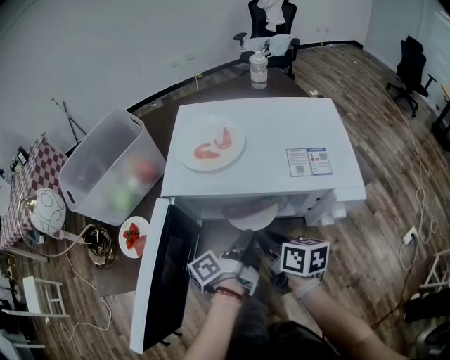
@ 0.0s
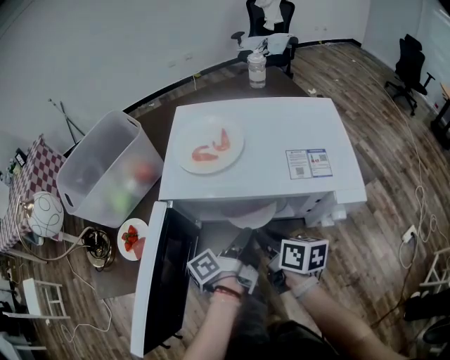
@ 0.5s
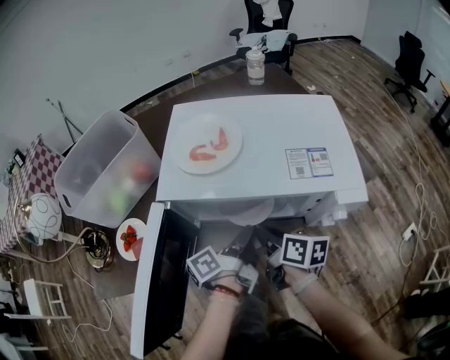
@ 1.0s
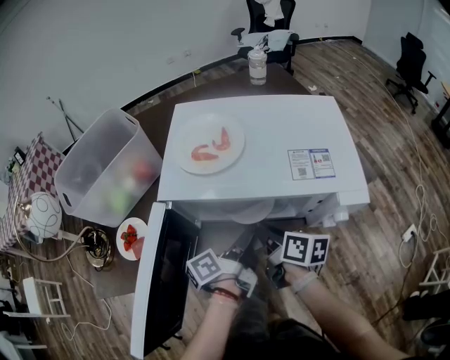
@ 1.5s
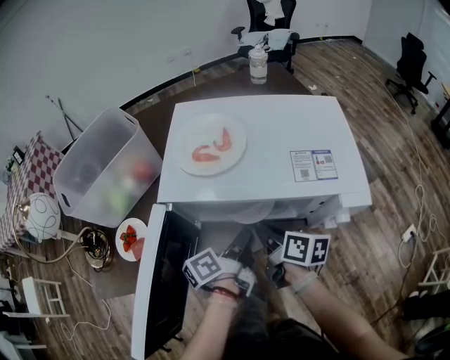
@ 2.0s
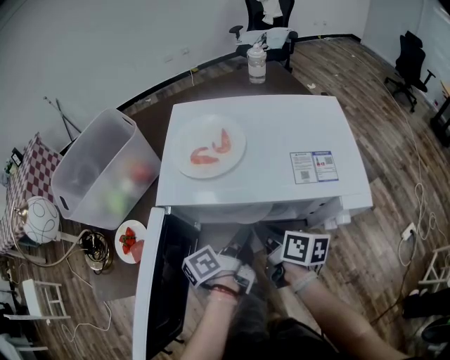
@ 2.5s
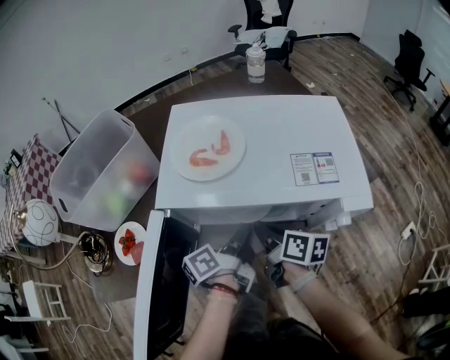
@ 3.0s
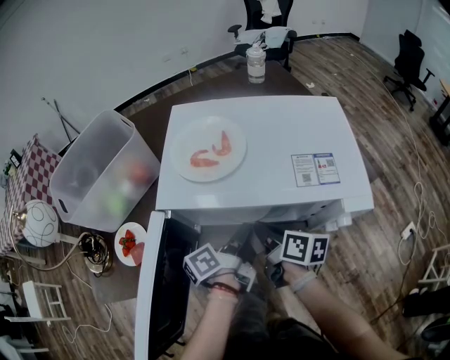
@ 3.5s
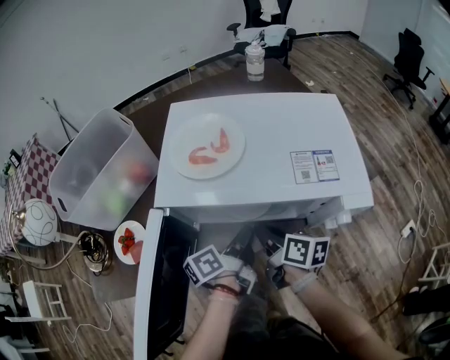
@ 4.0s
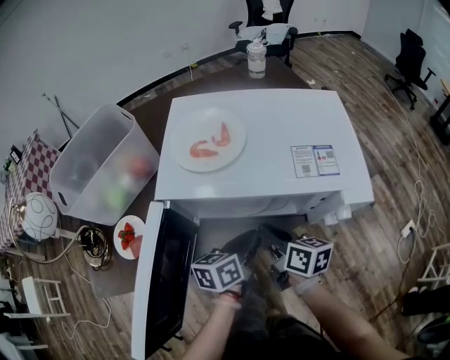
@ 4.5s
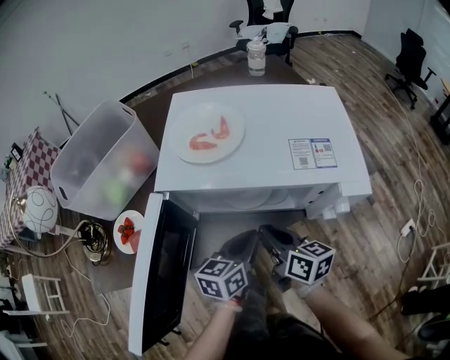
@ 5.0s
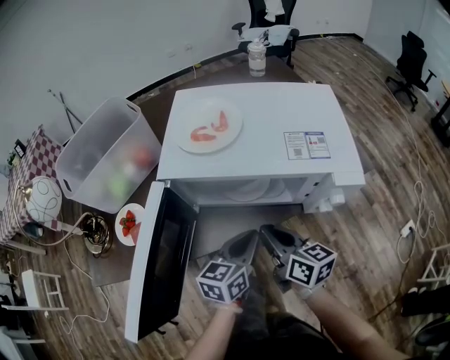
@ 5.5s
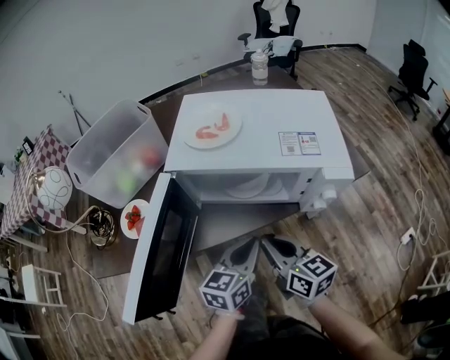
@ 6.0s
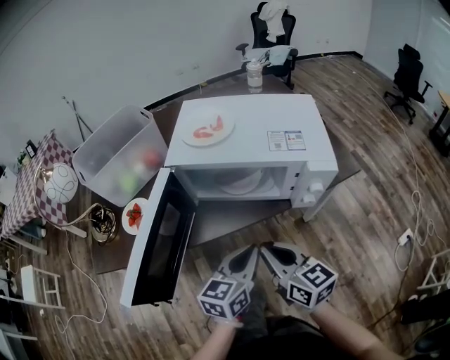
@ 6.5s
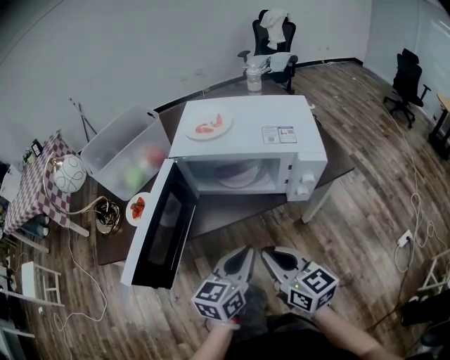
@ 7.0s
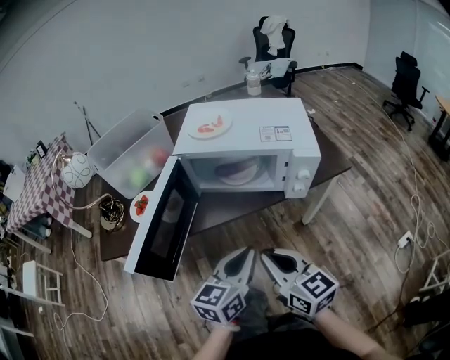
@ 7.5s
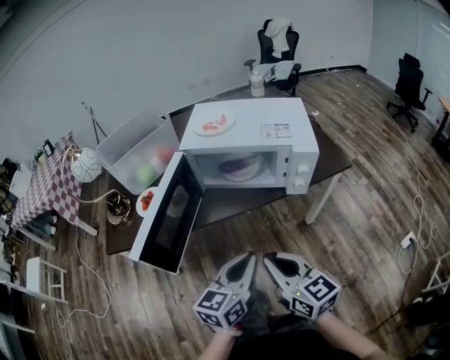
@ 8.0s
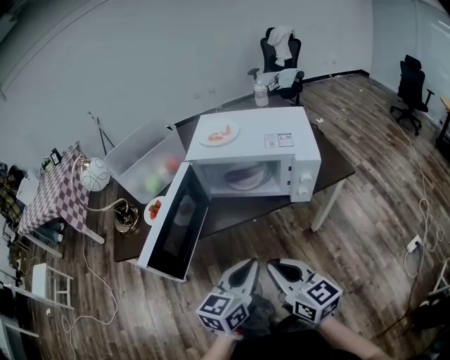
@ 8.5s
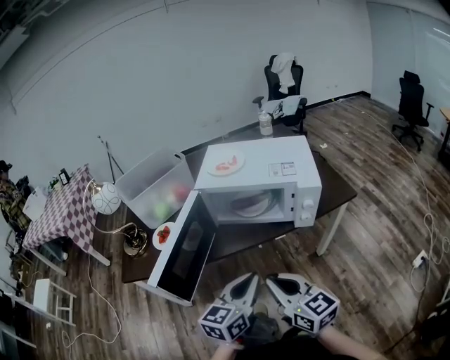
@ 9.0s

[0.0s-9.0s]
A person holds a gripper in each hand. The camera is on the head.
4.5s to 7.0s: The right gripper shifts by roughly 25 cm, and changes its angle by some 30 degrees.
7.0s to 9.0s: The right gripper ends up about 10 cm from where it was.

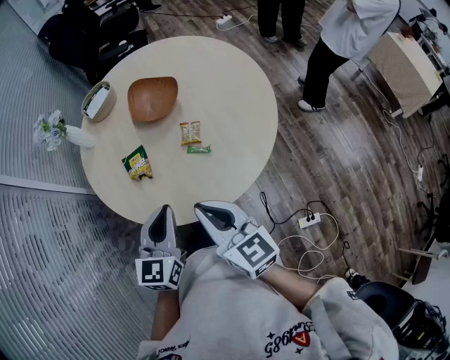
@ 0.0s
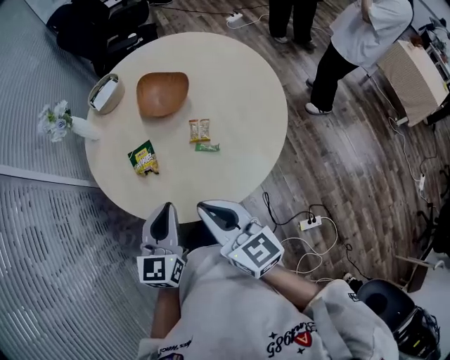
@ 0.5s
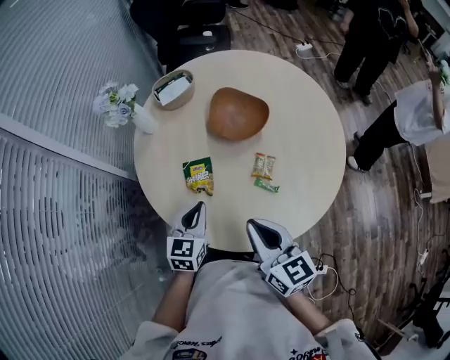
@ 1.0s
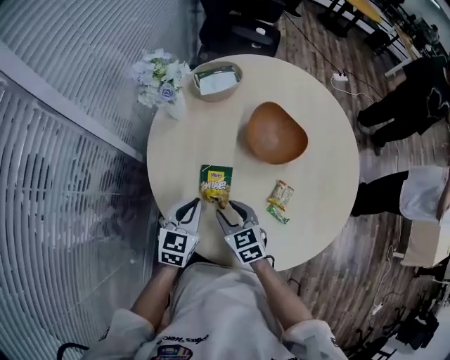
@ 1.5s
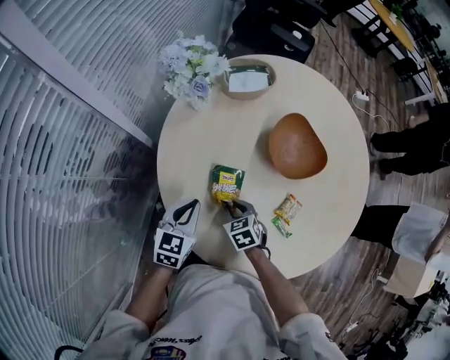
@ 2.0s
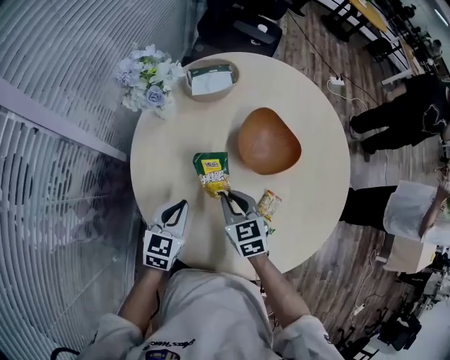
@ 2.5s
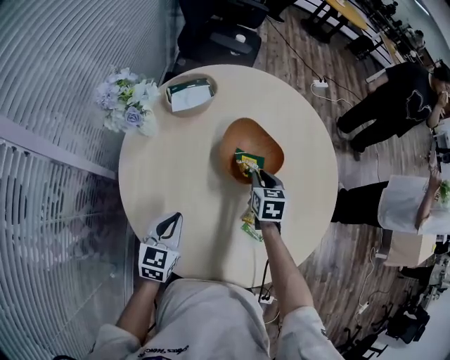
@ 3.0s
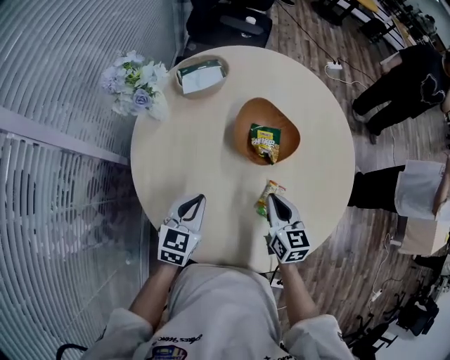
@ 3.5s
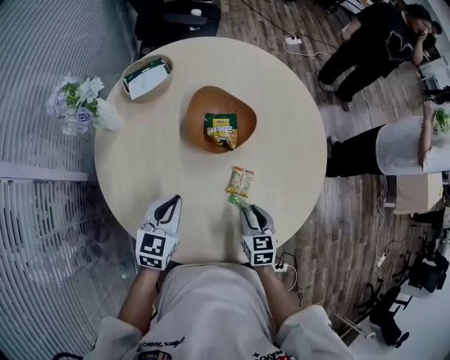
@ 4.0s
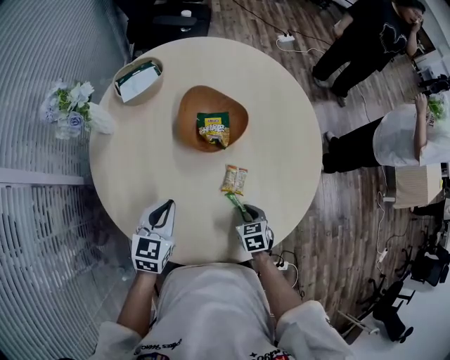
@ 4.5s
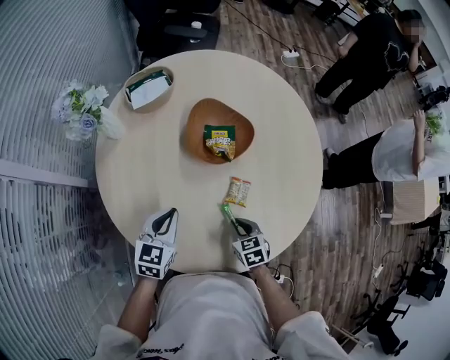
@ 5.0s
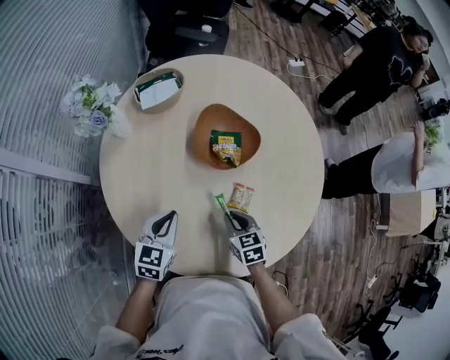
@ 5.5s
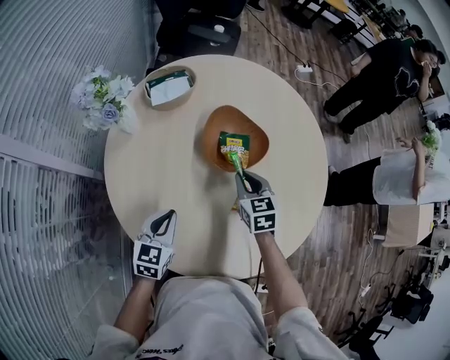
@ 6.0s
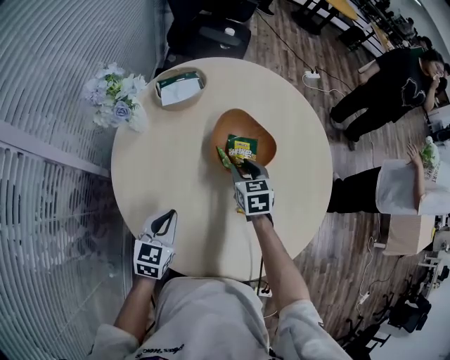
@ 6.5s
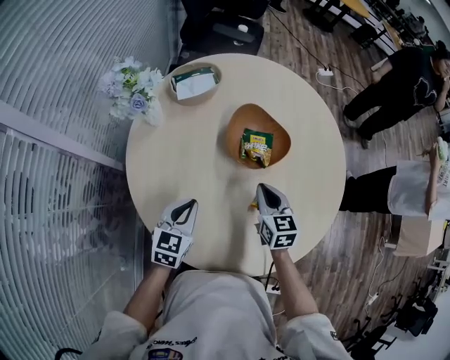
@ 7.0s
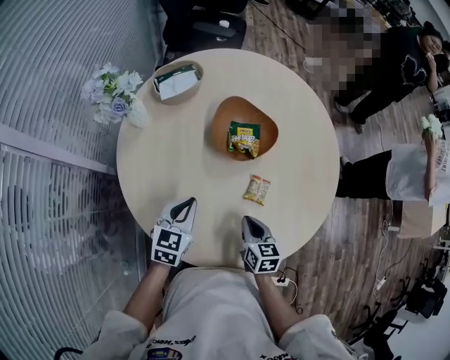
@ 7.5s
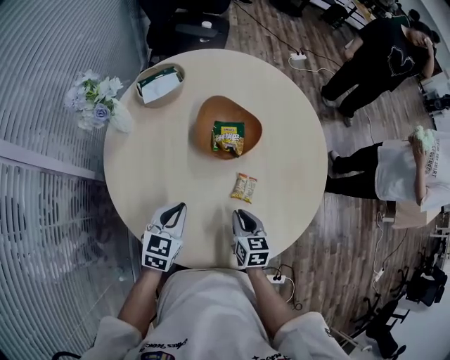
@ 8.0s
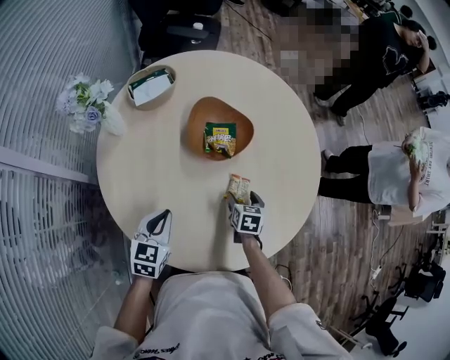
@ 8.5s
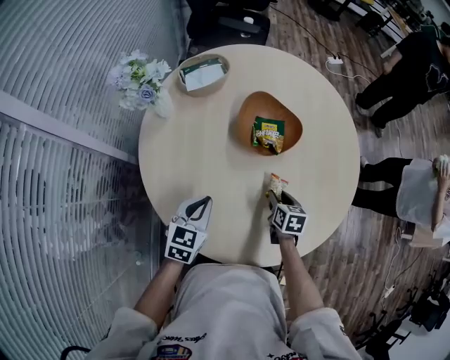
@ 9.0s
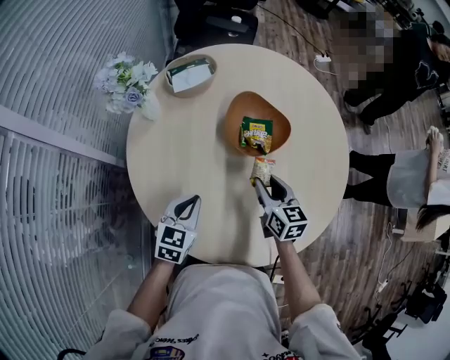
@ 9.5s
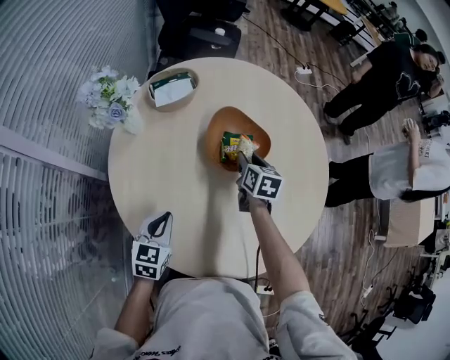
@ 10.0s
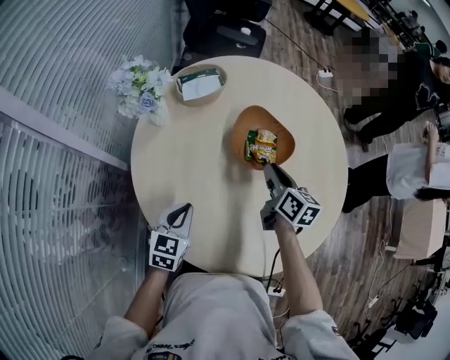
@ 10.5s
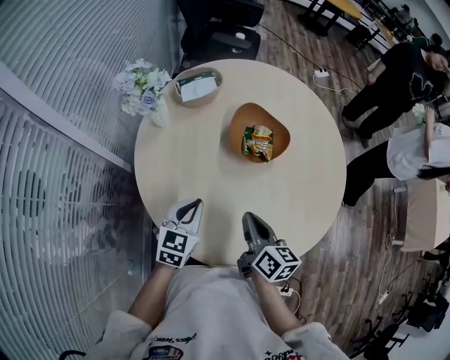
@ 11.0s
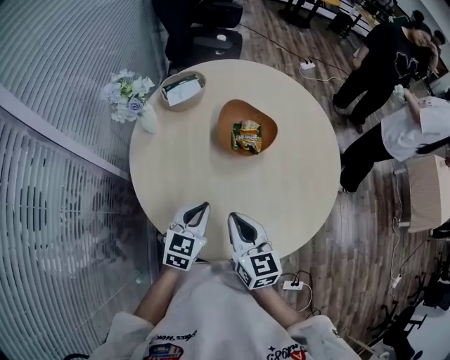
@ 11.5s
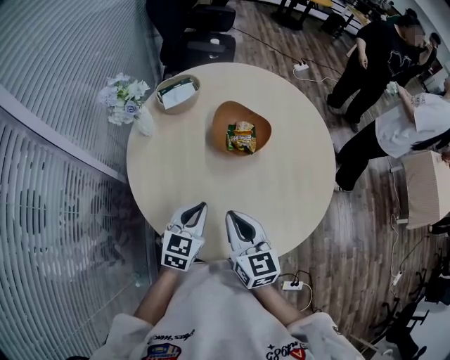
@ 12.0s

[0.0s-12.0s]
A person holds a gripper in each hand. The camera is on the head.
0.0s to 2.0s: The left gripper changes place by approximately 30 cm, and changes its angle by approximately 30 degrees. The right gripper goes roughly 30 cm downward, tilts its fingers some 50 degrees downward, and opens.
2.0s to 4.0s: The right gripper shifts by approximately 25 cm, turns by about 40 degrees, and closes and opens again. Meanwhile the left gripper shifts by some 15 cm.
4.0s to 6.0s: The right gripper goes approximately 20 cm forward and to the left.
6.0s to 8.0s: The right gripper moves backward, some 15 cm, rotates some 20 degrees, and opens, then closes again.
8.0s to 10.0s: The left gripper is displaced to the left by about 5 cm; the right gripper travels forward by roughly 25 cm, and opens its fingers.
10.0s to 12.0s: The left gripper travels upward and to the right by approximately 10 cm, while the right gripper travels backward and upward by approximately 30 cm, swivels approximately 30 degrees, and closes its fingers.

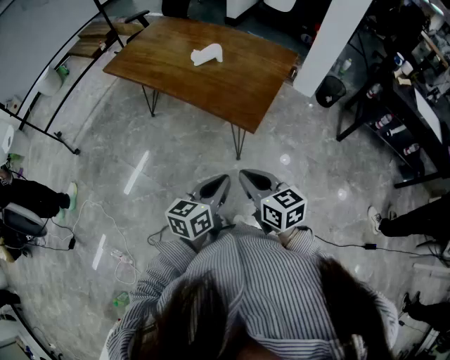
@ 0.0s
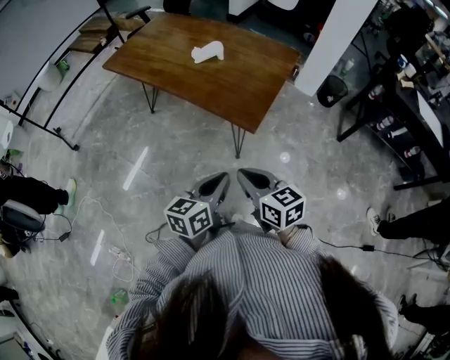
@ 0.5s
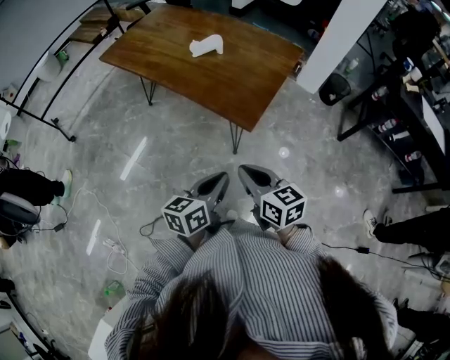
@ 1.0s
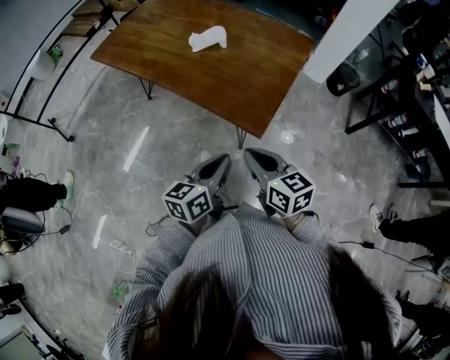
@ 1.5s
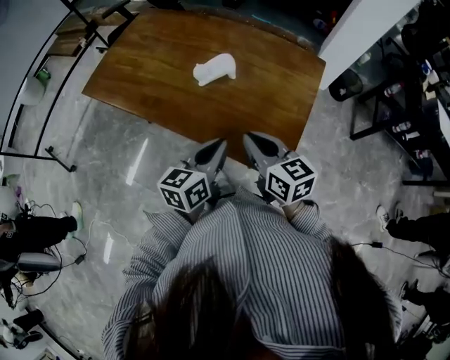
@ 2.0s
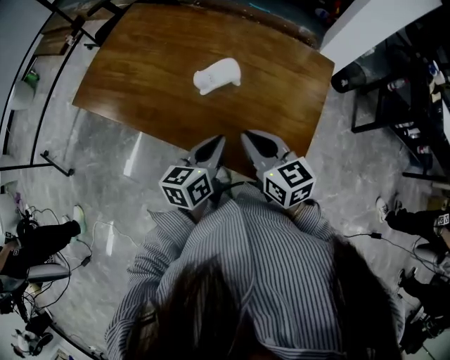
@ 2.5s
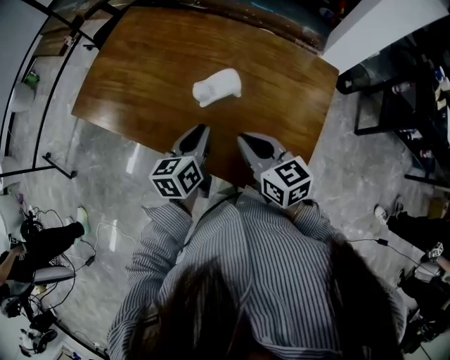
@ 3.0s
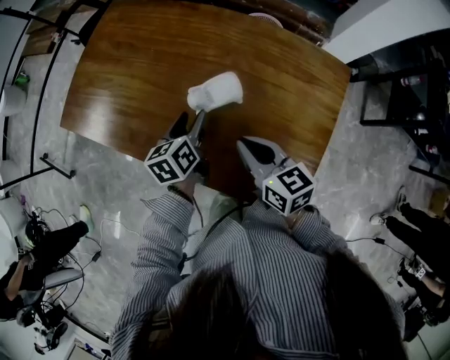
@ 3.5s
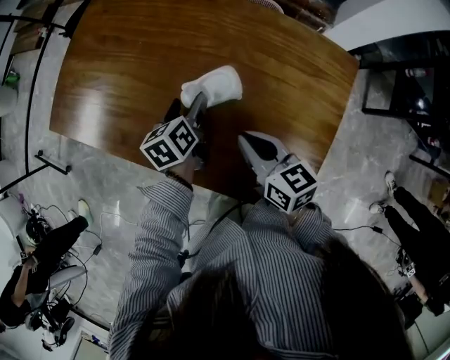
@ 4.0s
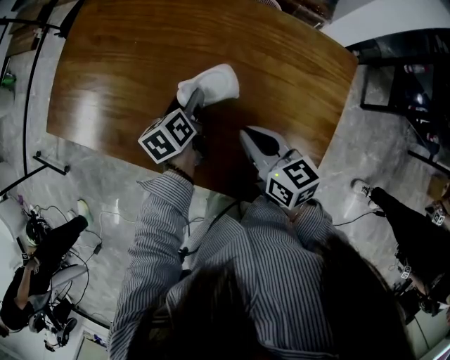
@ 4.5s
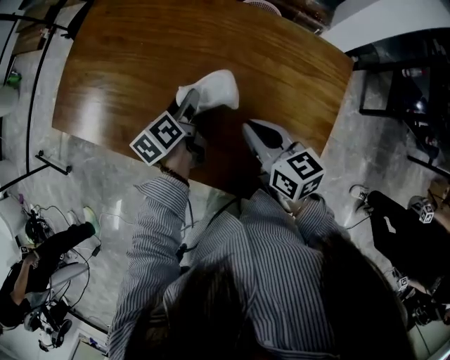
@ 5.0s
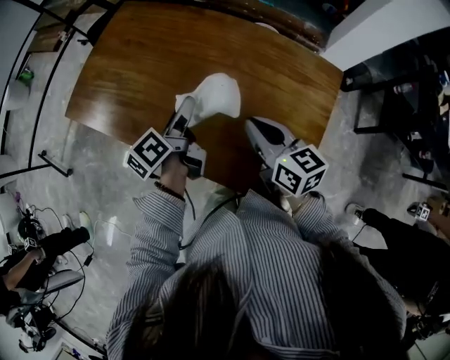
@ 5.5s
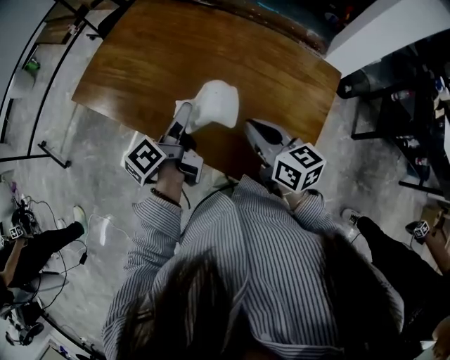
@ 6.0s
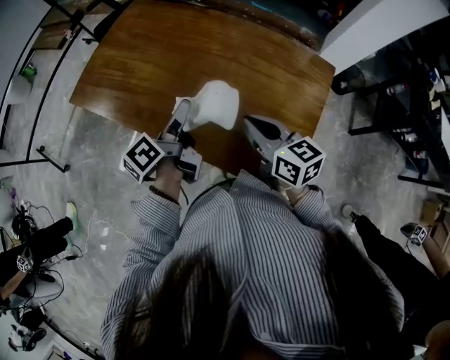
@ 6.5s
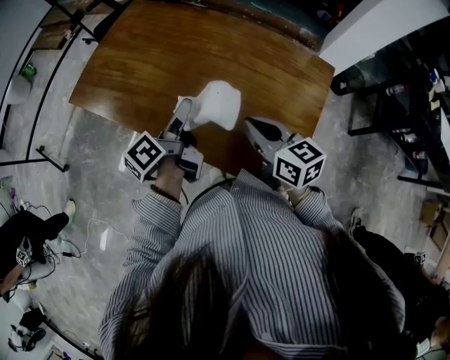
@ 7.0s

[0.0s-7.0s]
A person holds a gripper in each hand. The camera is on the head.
0.0s to 2.0s: Both grippers travel together forward, approximately 35 cm.
2.0s to 3.5s: The left gripper shifts roughly 30 cm forward and downward, turns by about 30 degrees, and opens, while the right gripper heads forward, covering about 15 cm.
5.0s to 7.0s: The left gripper shifts some 20 cm upward, backward and to the left, and changes its angle by approximately 30 degrees. The right gripper shifts roughly 10 cm upward and backward.
